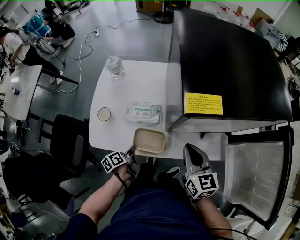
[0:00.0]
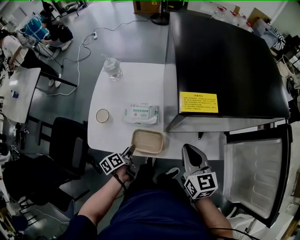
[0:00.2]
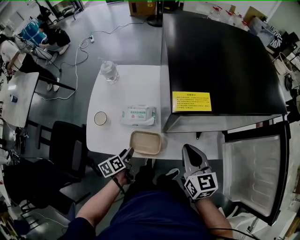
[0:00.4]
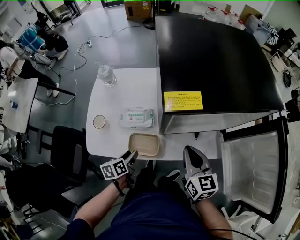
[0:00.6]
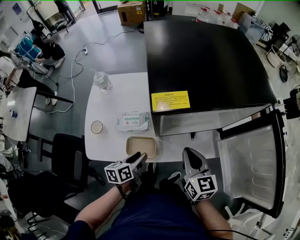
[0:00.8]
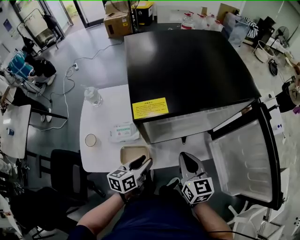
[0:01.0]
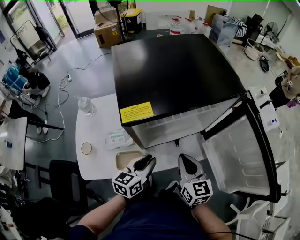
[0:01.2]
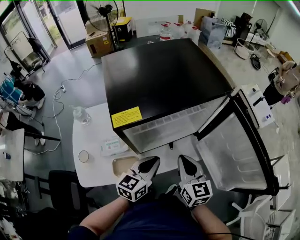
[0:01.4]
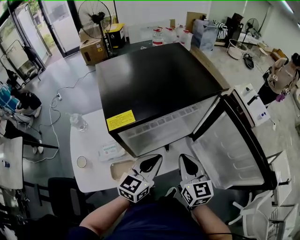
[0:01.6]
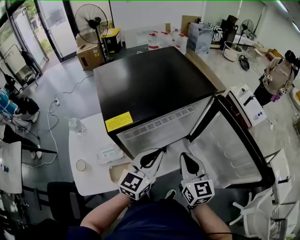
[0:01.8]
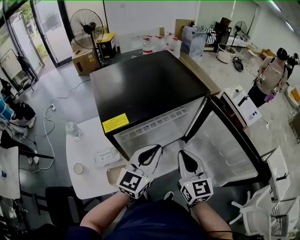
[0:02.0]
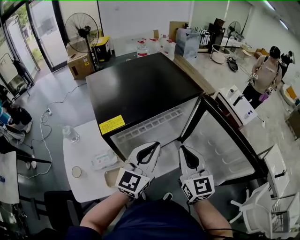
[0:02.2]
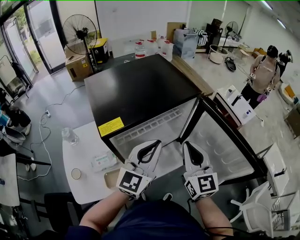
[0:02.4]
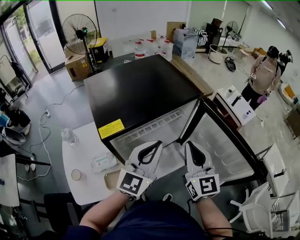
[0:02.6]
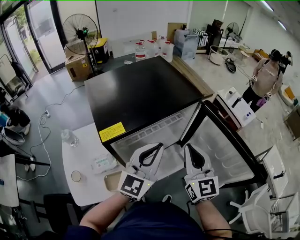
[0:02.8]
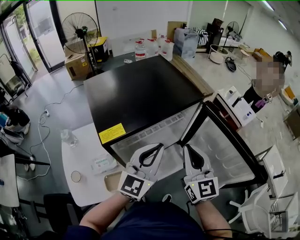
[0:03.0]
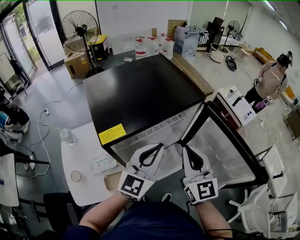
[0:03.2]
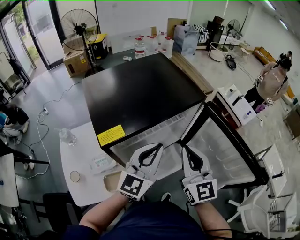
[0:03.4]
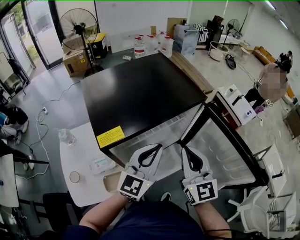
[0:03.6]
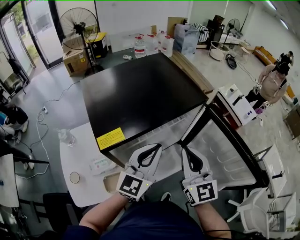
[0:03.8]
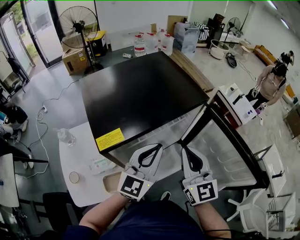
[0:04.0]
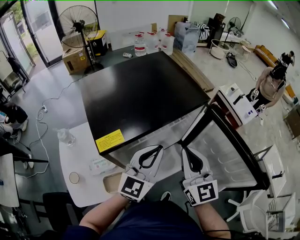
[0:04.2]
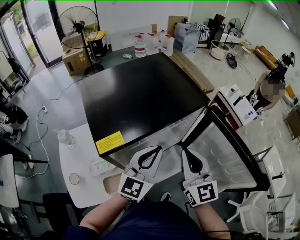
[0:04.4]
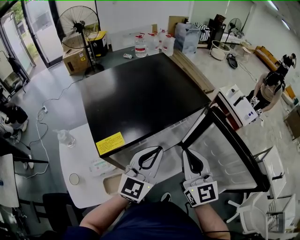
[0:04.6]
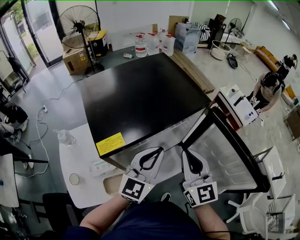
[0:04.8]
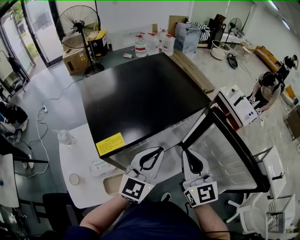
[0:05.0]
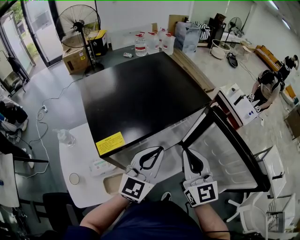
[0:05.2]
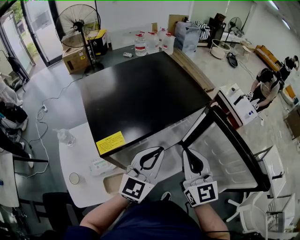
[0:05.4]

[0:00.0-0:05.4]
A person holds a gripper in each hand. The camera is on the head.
0:00.0 to 0:01.4: The right gripper shifts by roughly 15 cm, and turns by some 20 degrees; the left gripper changes place by roughly 35 cm, rolls clockwise, seen from behind, by some 70 degrees, and opens and closes again.
0:01.4 to 0:02.8: The left gripper heads upward, covering roughly 15 cm, and swivels about 30 degrees. Meanwhile the right gripper travels upward and to the right by roughly 15 cm, and turns by some 20 degrees.
0:02.8 to 0:04.0: The grippers make only small movements.
0:04.0 to 0:05.4: Both grippers stay put.

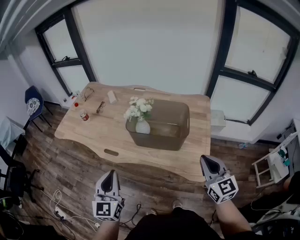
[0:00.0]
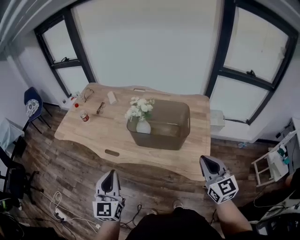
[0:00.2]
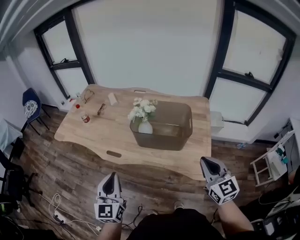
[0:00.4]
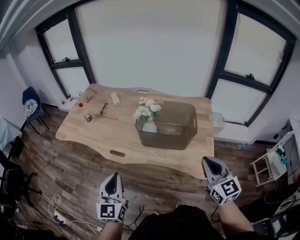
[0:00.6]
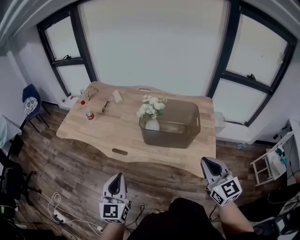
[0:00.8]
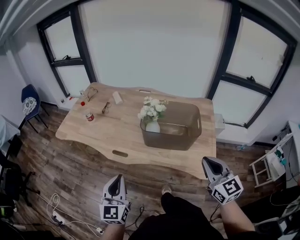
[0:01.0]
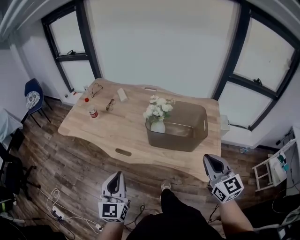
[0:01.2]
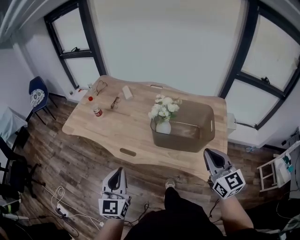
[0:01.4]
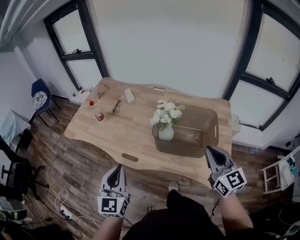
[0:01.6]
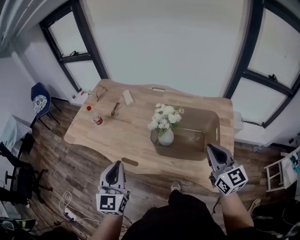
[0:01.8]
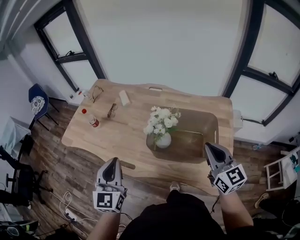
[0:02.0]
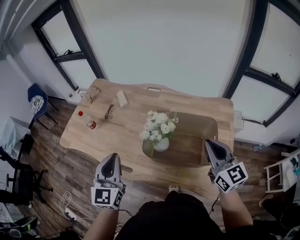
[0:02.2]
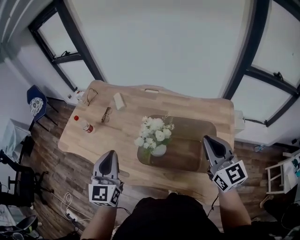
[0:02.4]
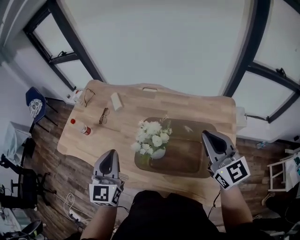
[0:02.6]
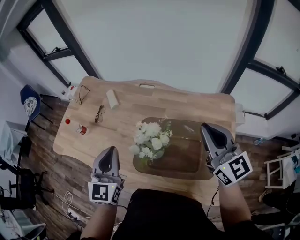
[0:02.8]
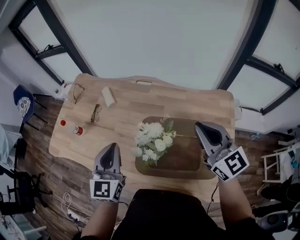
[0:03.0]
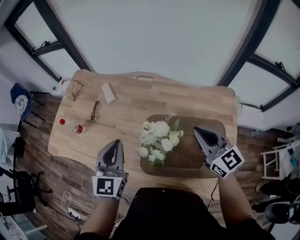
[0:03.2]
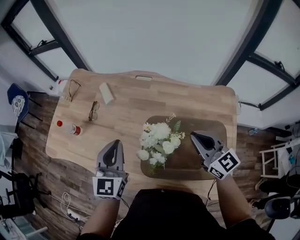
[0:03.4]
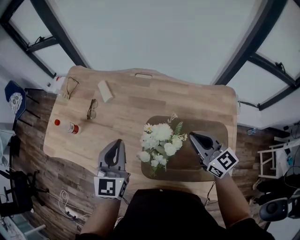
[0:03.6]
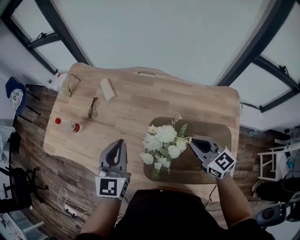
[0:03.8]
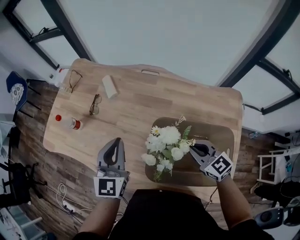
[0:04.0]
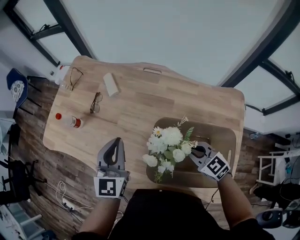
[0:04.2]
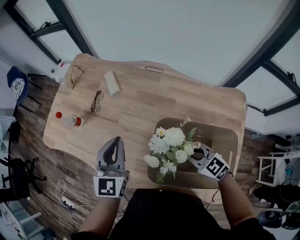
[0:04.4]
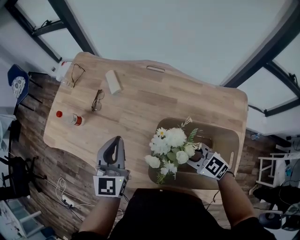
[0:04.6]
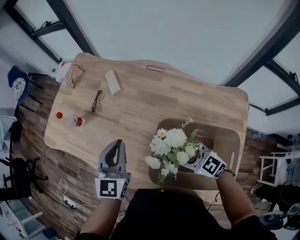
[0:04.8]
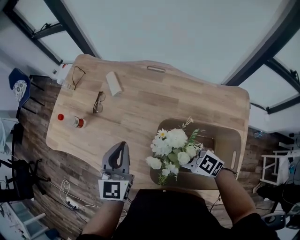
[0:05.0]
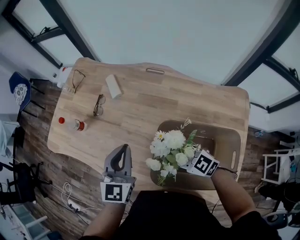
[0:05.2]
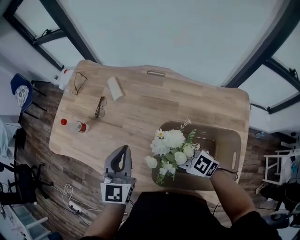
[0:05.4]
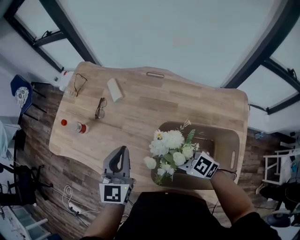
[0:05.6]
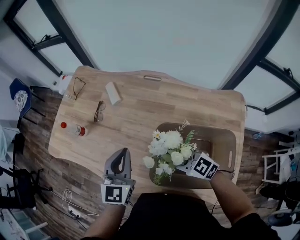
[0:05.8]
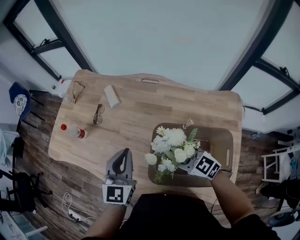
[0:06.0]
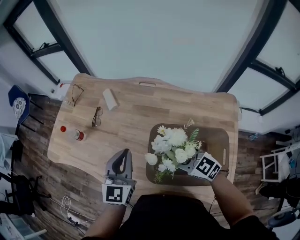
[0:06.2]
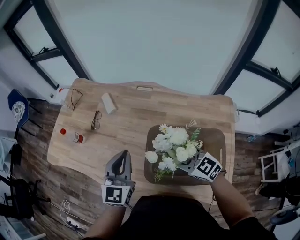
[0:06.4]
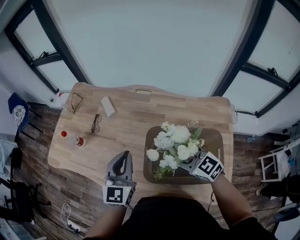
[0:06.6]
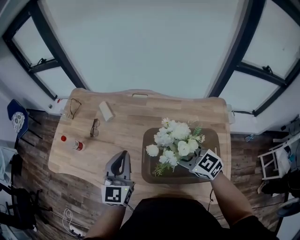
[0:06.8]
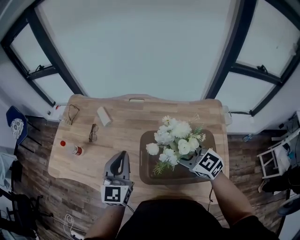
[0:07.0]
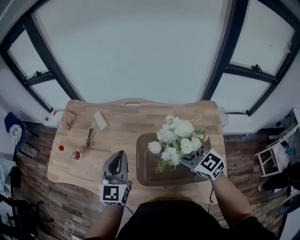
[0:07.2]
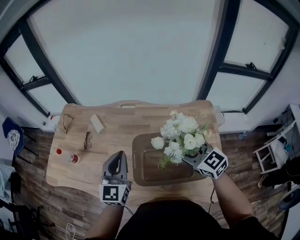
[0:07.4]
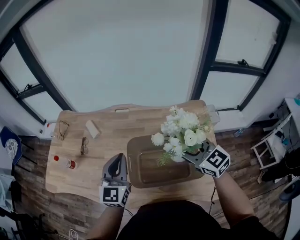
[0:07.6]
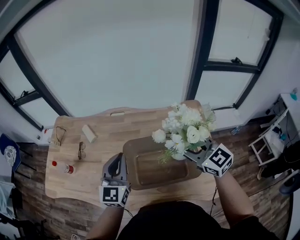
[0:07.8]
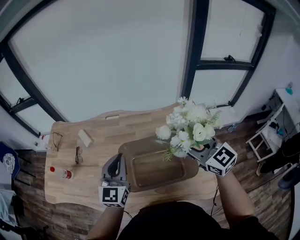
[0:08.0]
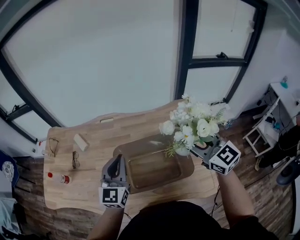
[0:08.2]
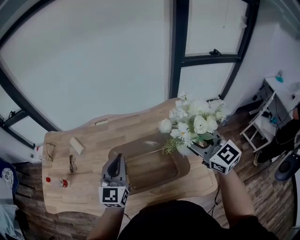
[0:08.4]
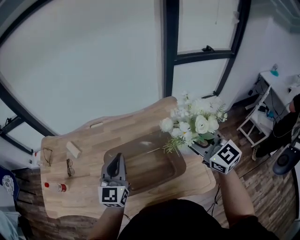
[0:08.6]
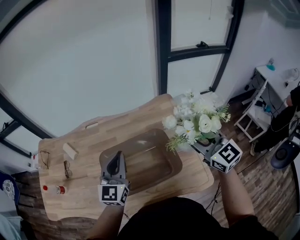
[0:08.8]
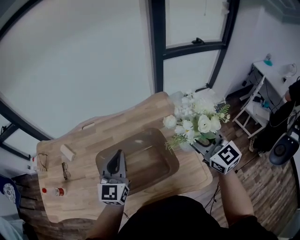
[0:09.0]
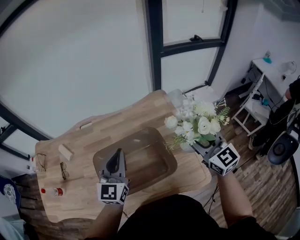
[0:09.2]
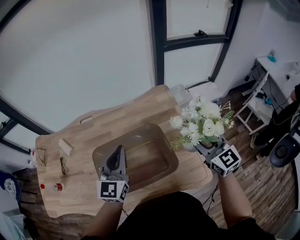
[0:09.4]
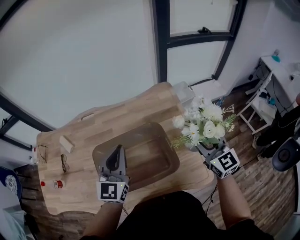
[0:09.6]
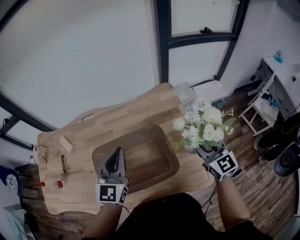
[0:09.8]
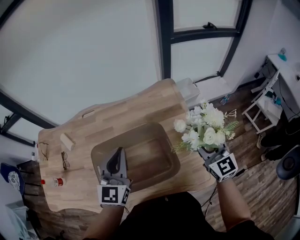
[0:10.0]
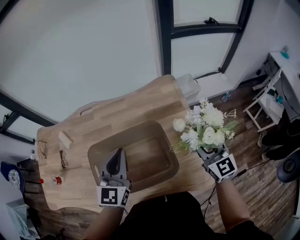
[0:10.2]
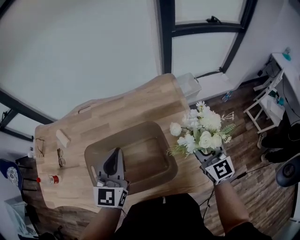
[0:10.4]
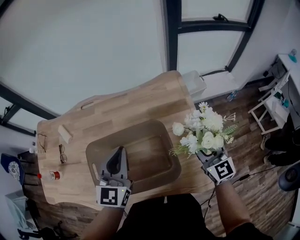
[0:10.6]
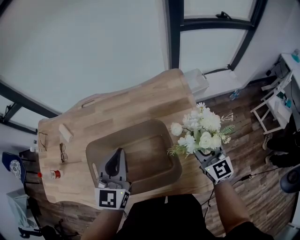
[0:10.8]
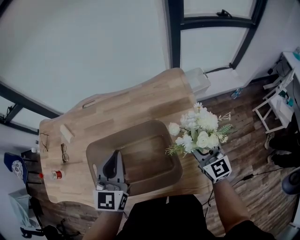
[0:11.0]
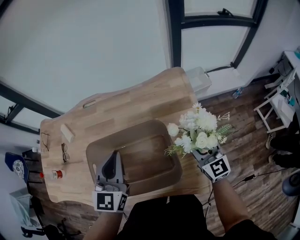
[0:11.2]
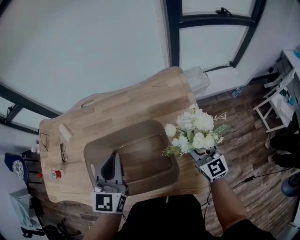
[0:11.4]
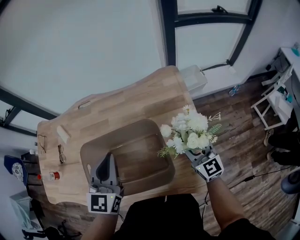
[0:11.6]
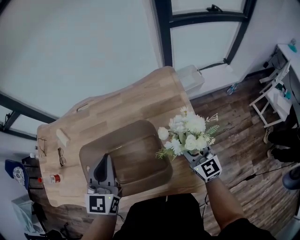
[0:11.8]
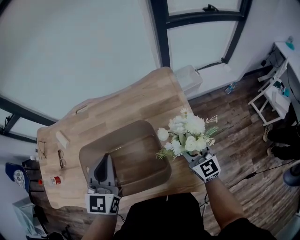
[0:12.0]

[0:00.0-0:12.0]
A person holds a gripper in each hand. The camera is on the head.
0:00.0 to 0:01.6: The grippers both shift to the left and forward by roughly 15 cm.
0:01.6 to 0:03.0: The right gripper shifts some 25 cm forward. The left gripper goes some 30 cm forward and to the right.
0:03.0 to 0:04.4: The left gripper shifts approximately 10 cm forward and downward; the right gripper travels downward by about 25 cm, and angles its fingers downward, by roughly 30 degrees.
0:04.4 to 0:06.0: The right gripper changes place by some 5 cm, and opens up.
0:06.0 to 0:07.6: The left gripper moves to the right and upward, roughly 10 cm. The right gripper goes roughly 20 cm upward and to the right, and changes its angle by approximately 30 degrees.
0:07.6 to 0:09.0: The two grippers go approximately 20 cm to the right. The right gripper turns by about 30 degrees.
0:09.0 to 0:10.4: The right gripper travels downward by some 15 cm, while the left gripper moves some 5 cm.
0:10.4 to 0:12.0: The right gripper is displaced downward by some 10 cm.

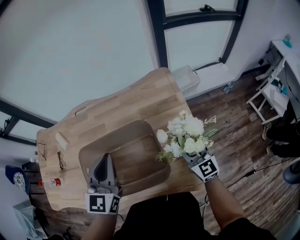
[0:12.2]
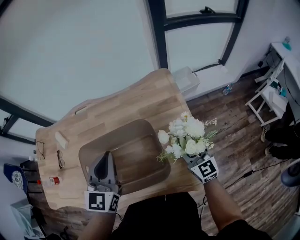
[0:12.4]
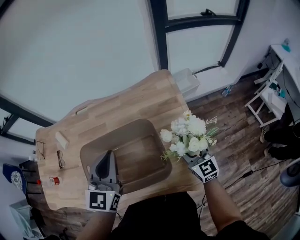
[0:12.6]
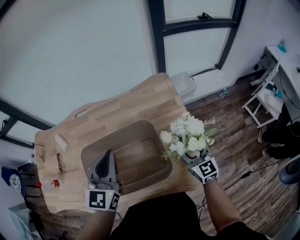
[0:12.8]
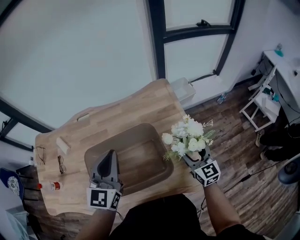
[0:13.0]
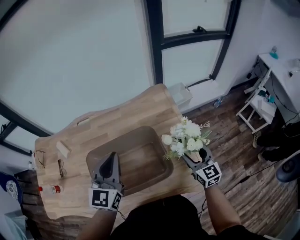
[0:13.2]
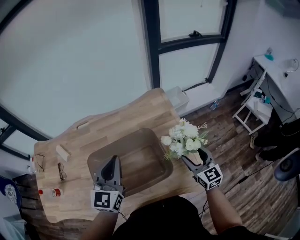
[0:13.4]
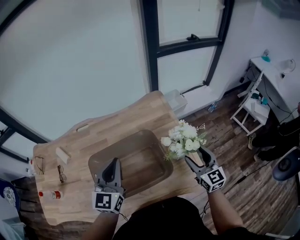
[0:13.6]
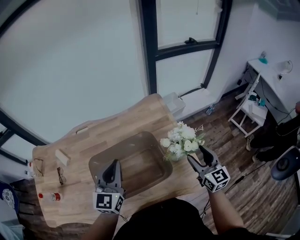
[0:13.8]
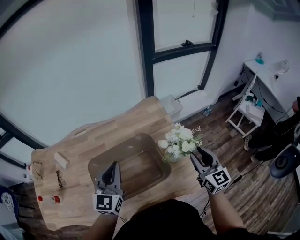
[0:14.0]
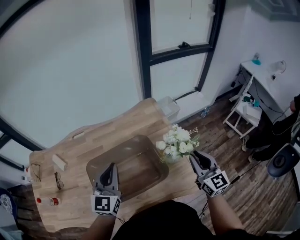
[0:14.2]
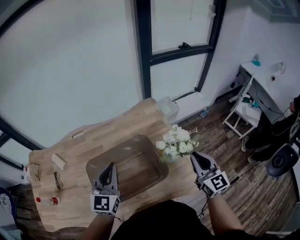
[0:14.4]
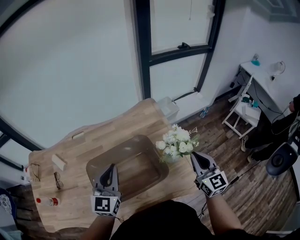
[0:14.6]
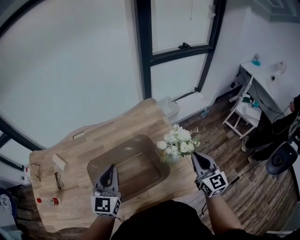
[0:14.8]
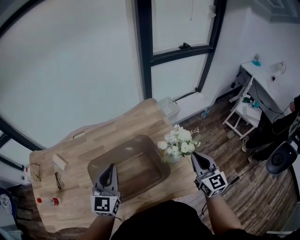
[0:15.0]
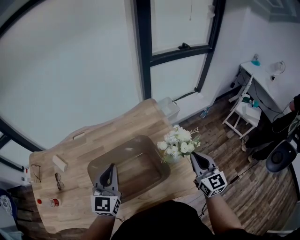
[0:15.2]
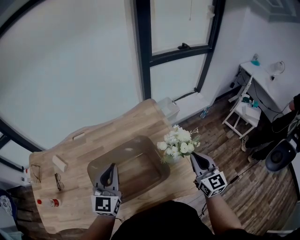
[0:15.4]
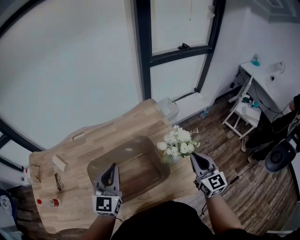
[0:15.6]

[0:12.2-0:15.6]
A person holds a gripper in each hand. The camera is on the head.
0:12.2 to 0:13.8: The right gripper shifts approximately 10 cm upward and backward.
0:13.8 to 0:15.6: The right gripper closes up.

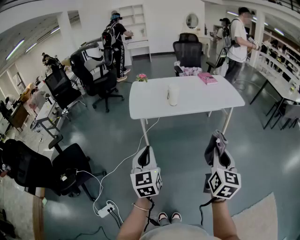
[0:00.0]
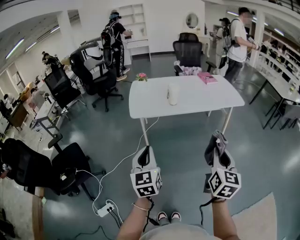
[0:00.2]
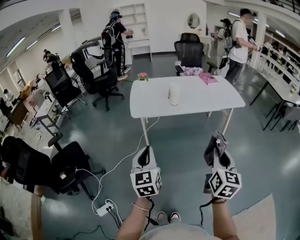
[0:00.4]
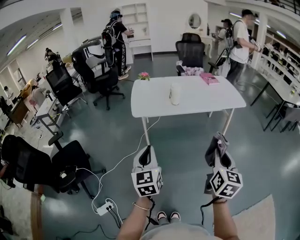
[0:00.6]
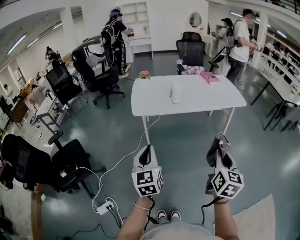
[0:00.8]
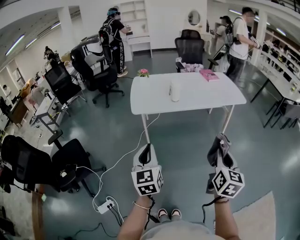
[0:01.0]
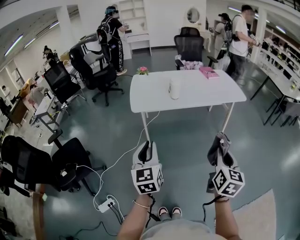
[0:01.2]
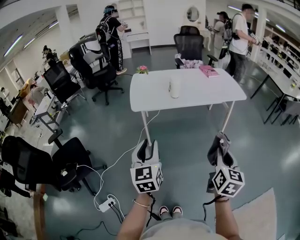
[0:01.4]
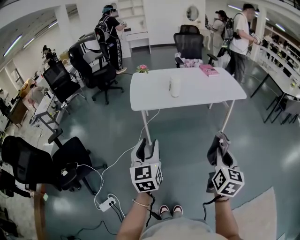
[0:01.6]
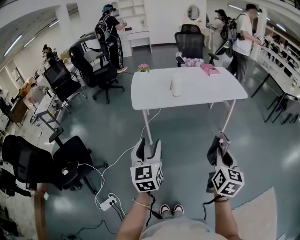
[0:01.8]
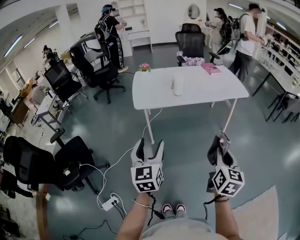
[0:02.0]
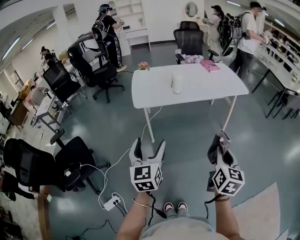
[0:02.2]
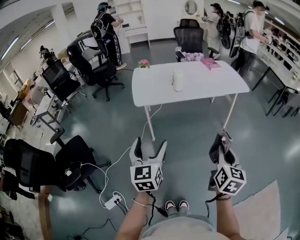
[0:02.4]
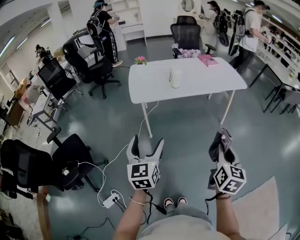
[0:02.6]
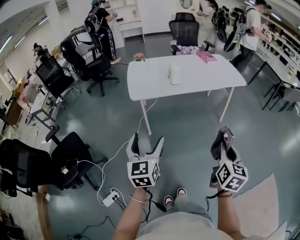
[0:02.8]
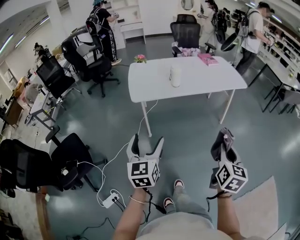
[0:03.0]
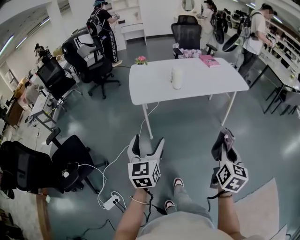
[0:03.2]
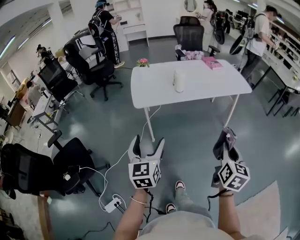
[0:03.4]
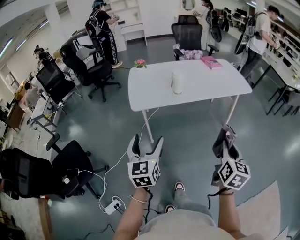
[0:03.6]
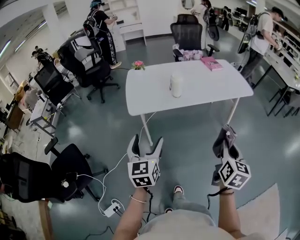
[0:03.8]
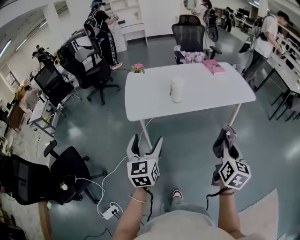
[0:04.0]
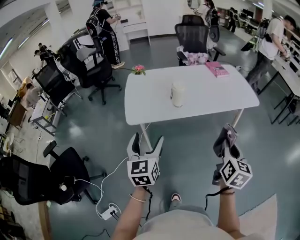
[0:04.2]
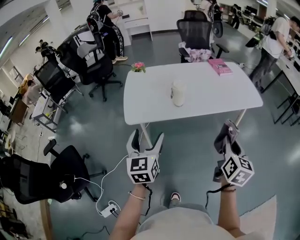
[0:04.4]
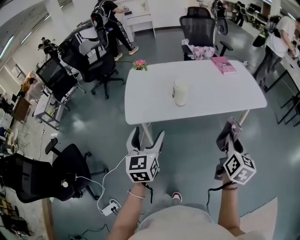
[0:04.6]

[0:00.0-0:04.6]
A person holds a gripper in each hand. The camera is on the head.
0:00.0 to 0:01.6: The left gripper opens its fingers.
0:01.6 to 0:03.0: The left gripper opens its fingers.
0:03.0 to 0:04.6: The two grippers go approximately 30 cm forward.
